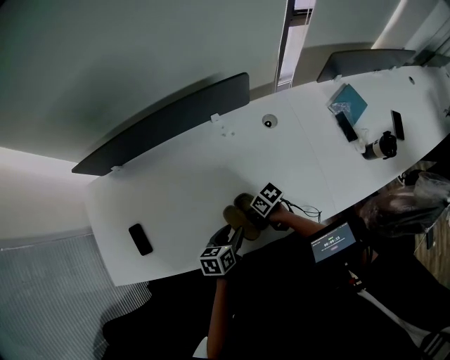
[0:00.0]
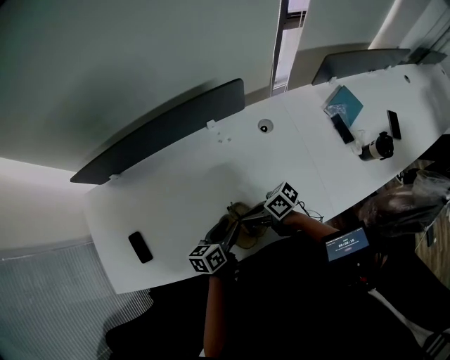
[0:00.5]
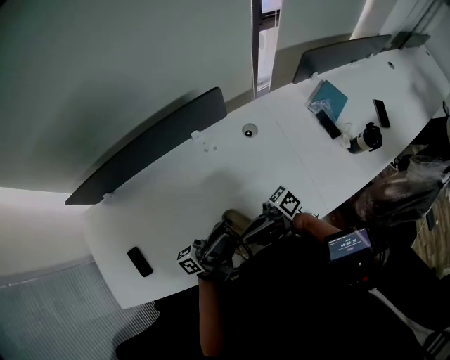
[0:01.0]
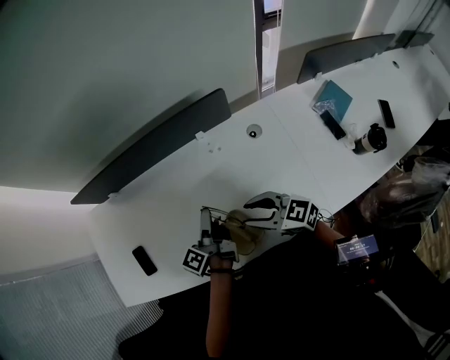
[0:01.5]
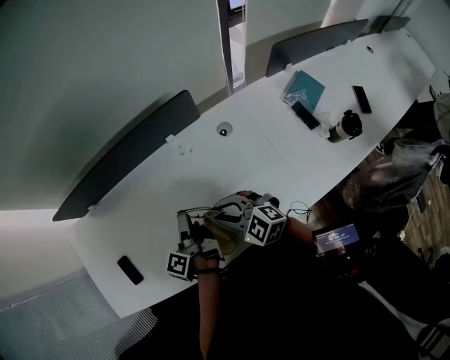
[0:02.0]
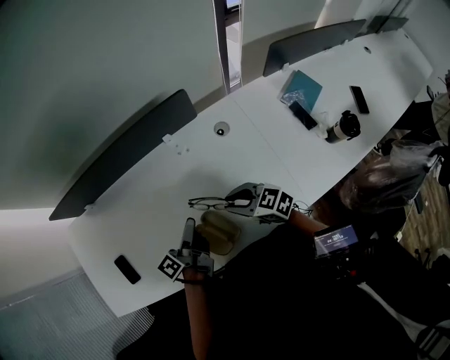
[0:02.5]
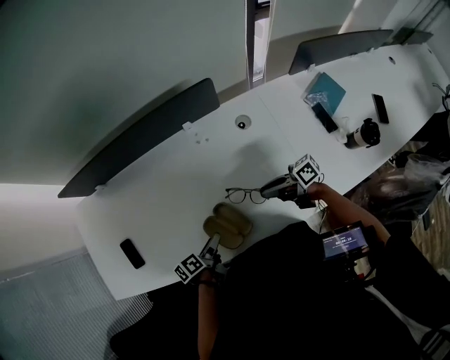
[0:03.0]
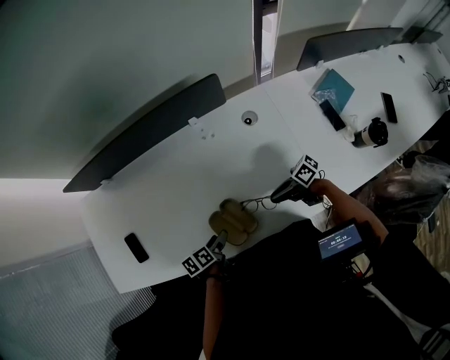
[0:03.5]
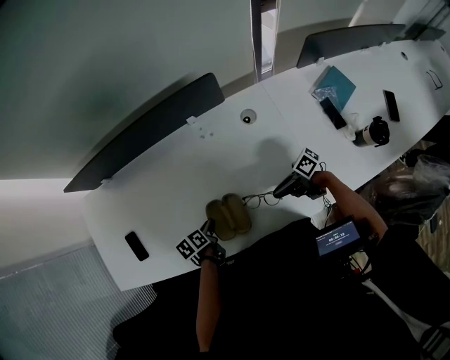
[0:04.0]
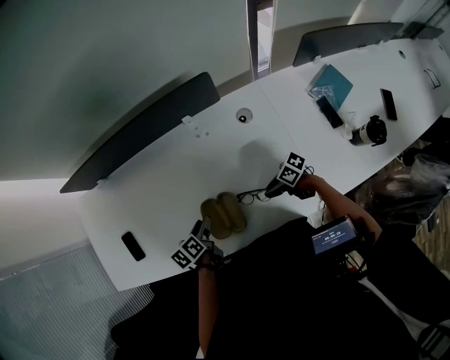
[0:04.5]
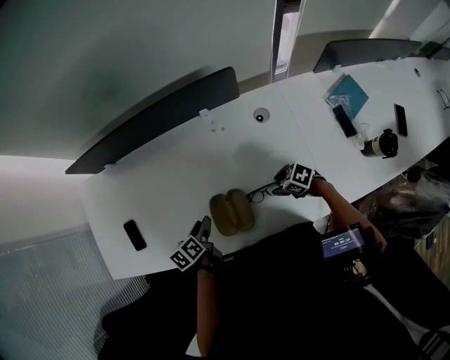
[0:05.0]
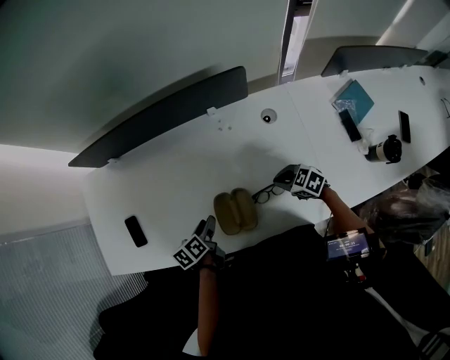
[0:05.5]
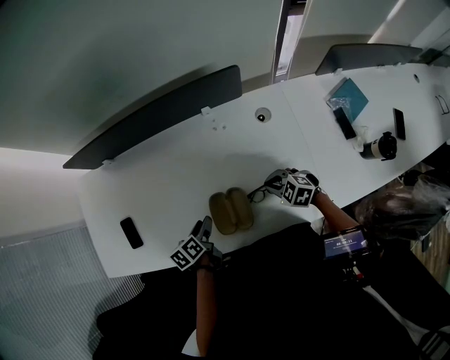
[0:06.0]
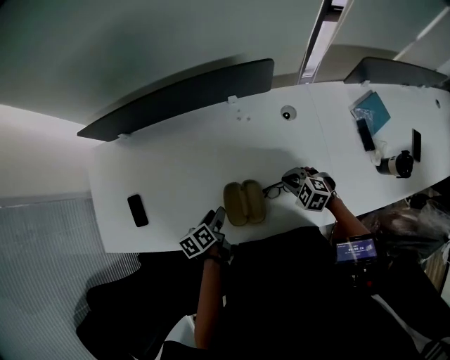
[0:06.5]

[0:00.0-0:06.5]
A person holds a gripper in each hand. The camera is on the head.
0:00.0 to 0:02.0: The right gripper heads upward, covering approximately 20 cm, rotates around the line of its fingers by about 60 degrees, counterclockwise from behind, and opens; the left gripper changes place by roughly 15 cm, and points its fingers some 30 degrees further upward.
0:02.0 to 0:04.5: The left gripper heads downward, covering some 10 cm, angles its fingers downward, by roughly 30 degrees, and closes and opens again. The right gripper travels downward by about 20 cm, and rotates around the line of its fingers by about 60 degrees, clockwise from behind.
0:04.5 to 0:06.5: The right gripper travels upward by some 5 cm, rotates around the line of its fingers by approximately 50 degrees, counterclockwise from behind, and closes.

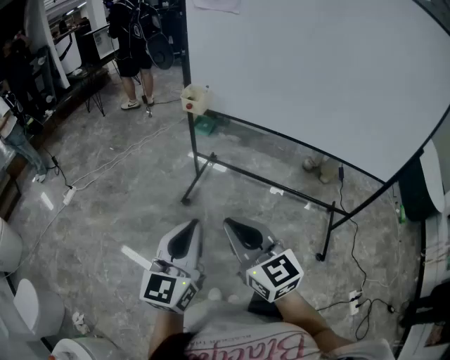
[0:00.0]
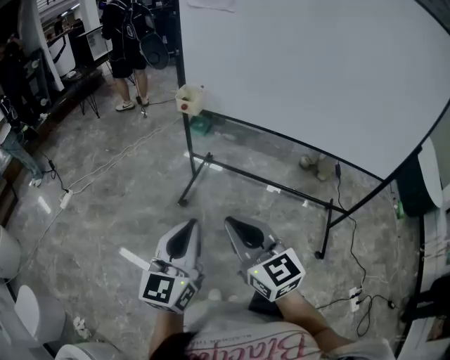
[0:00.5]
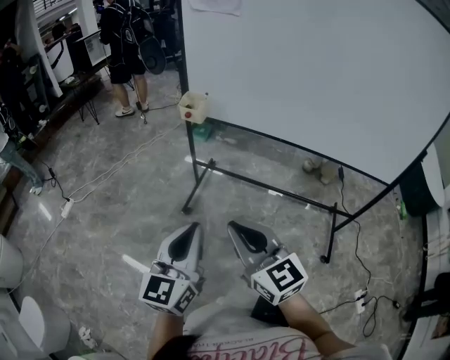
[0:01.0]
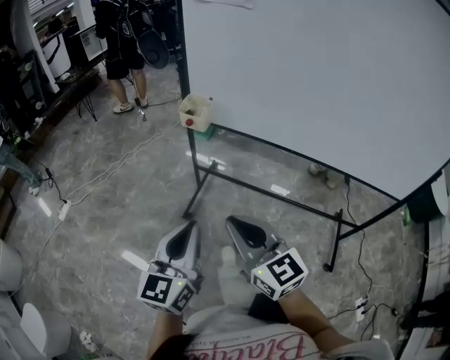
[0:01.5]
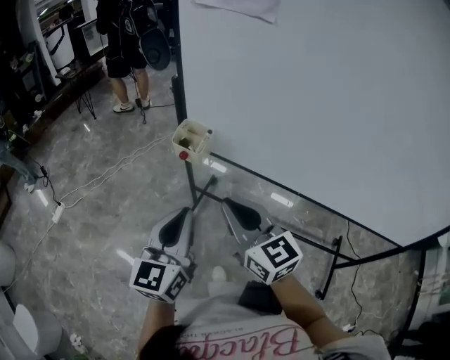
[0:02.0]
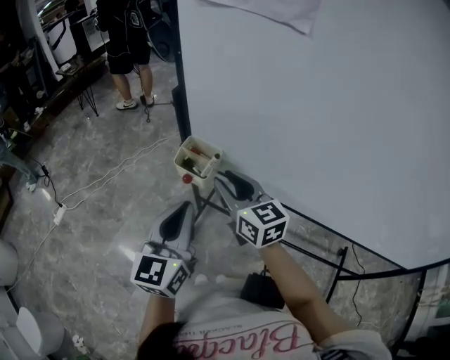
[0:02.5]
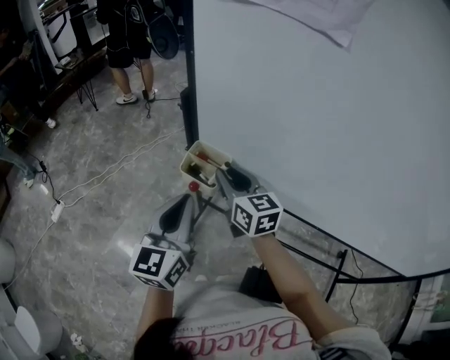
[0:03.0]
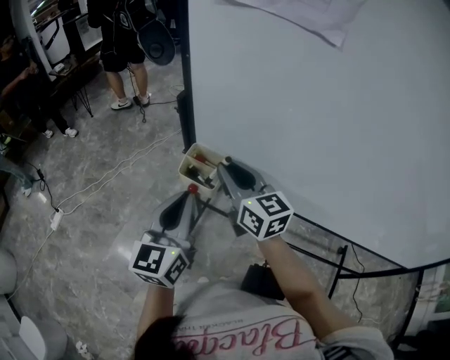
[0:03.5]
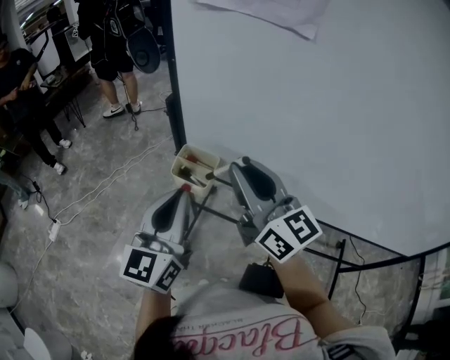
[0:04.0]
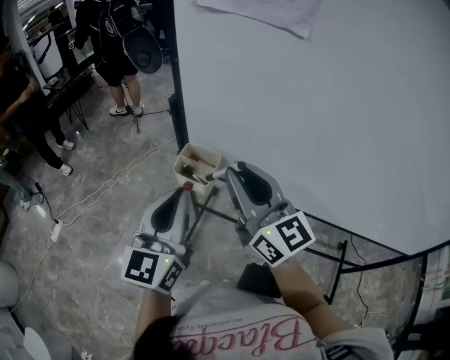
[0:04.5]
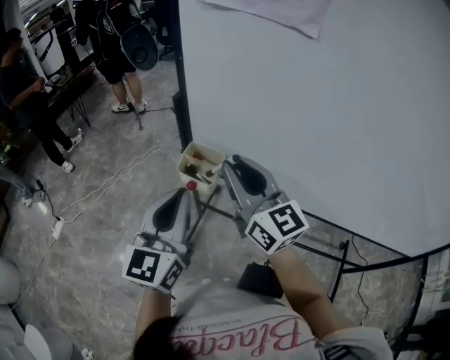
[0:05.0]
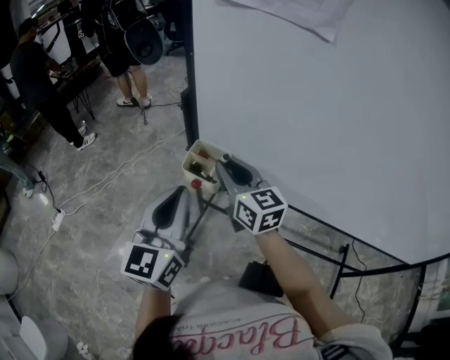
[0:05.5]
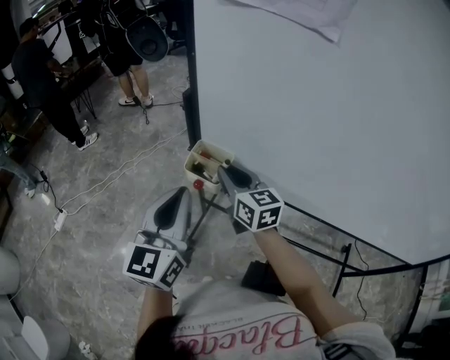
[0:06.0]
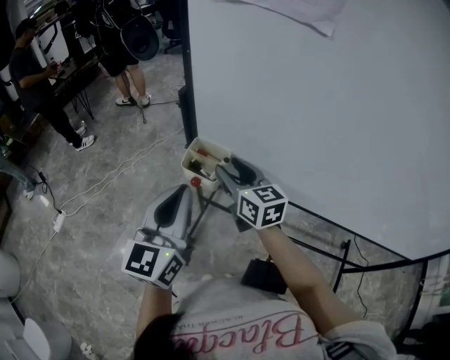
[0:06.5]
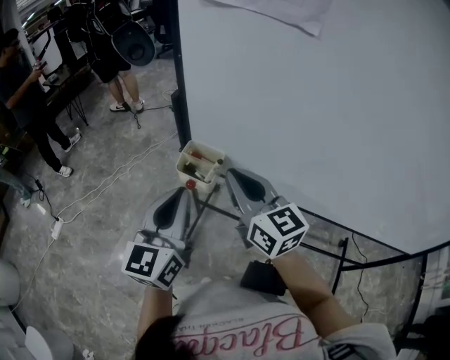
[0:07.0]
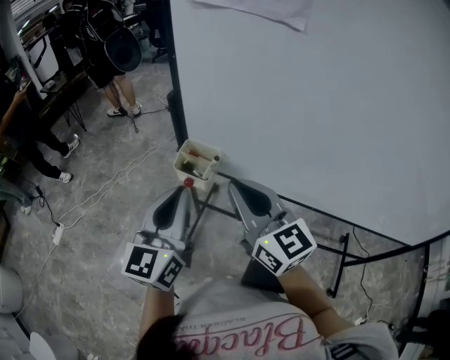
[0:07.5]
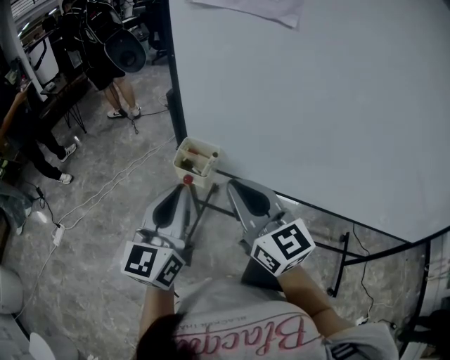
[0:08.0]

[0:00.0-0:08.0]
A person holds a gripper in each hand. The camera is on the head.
0:00.0 to 0:02.0: The grippers both shift forward by roughly 30 cm.
0:02.0 to 0:04.0: The left gripper travels forward by some 15 cm. The right gripper is displaced forward and upward by roughly 15 cm.
0:04.0 to 0:06.0: The right gripper shifts some 15 cm downward and forward, and rotates about 20 degrees.
0:06.0 to 0:08.0: The right gripper is displaced backward and upward by approximately 20 cm, and opens, then closes again.

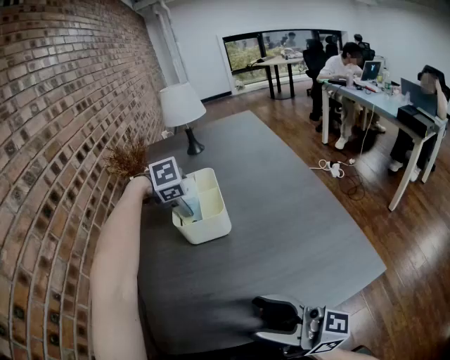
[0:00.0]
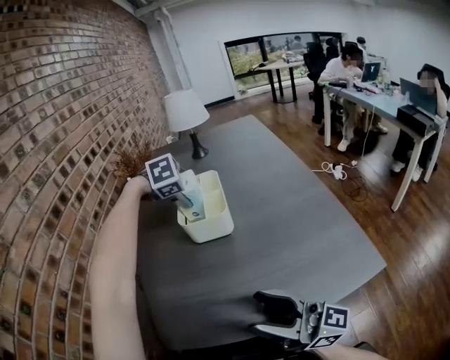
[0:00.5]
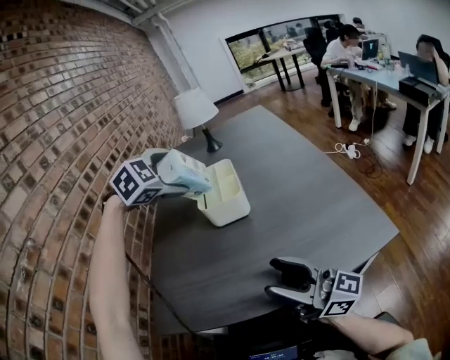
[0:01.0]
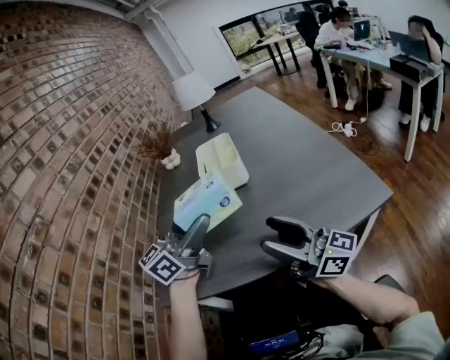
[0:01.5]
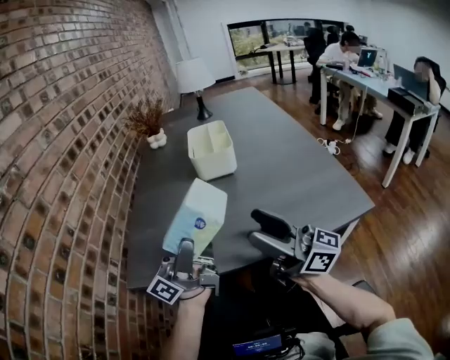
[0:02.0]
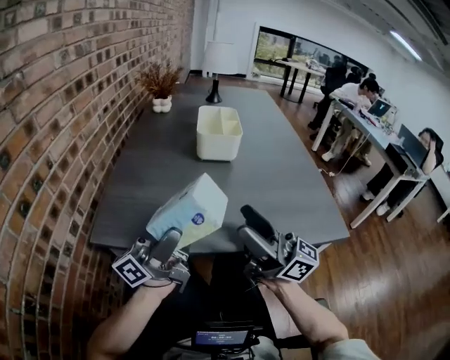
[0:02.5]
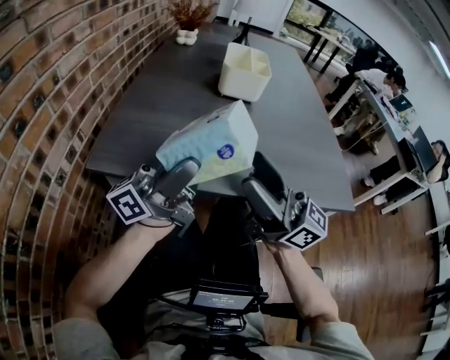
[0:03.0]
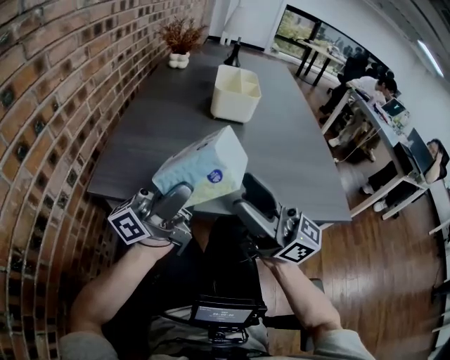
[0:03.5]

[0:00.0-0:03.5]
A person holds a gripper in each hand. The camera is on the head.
0:00.0 to 0:02.0: The left gripper ends up about 40 cm from where it was, and tilts its fingers roughly 120 degrees upward.
0:02.0 to 0:03.5: The right gripper is displaced to the left by roughly 5 cm.

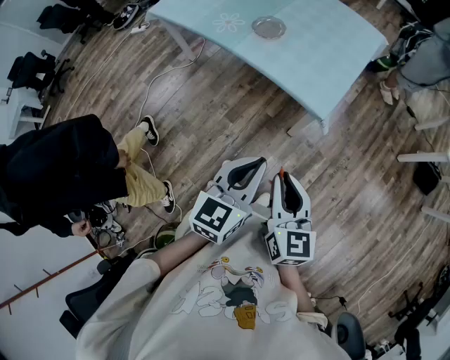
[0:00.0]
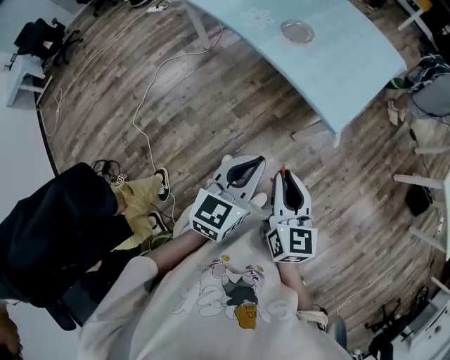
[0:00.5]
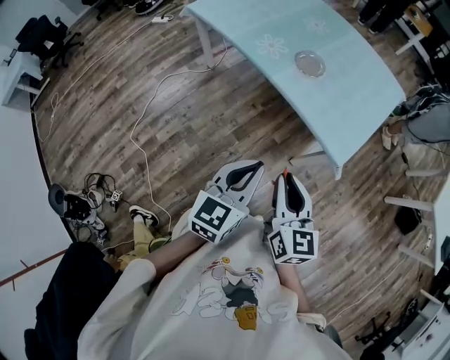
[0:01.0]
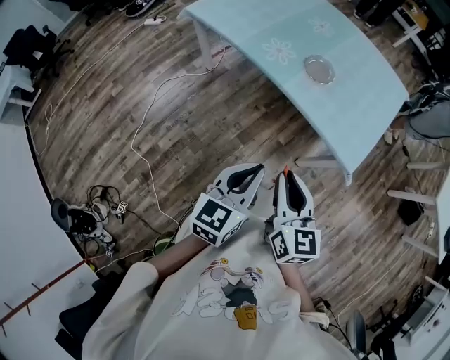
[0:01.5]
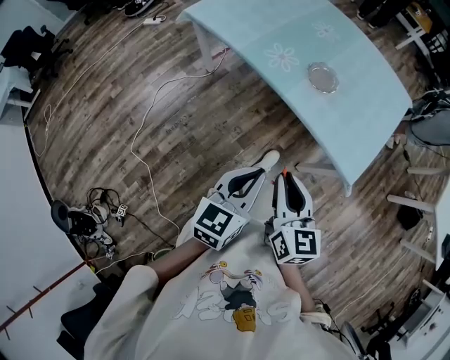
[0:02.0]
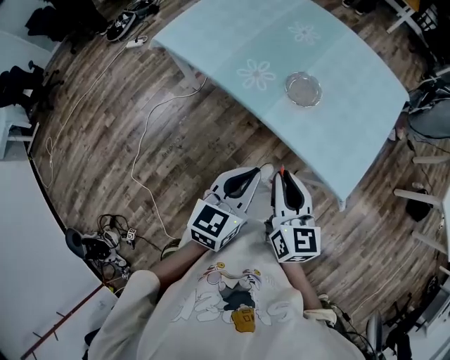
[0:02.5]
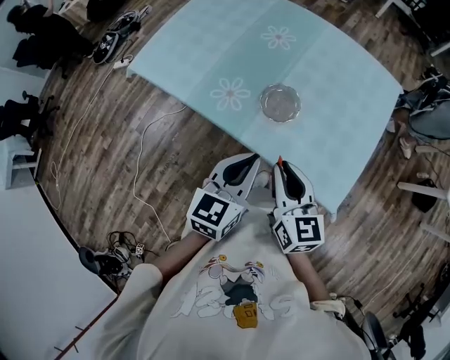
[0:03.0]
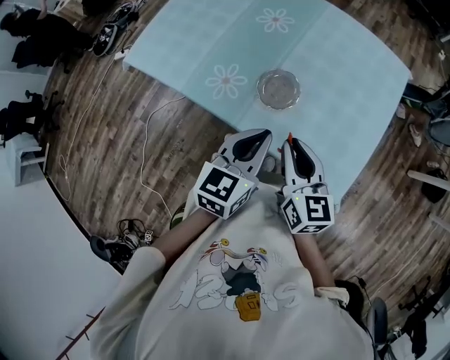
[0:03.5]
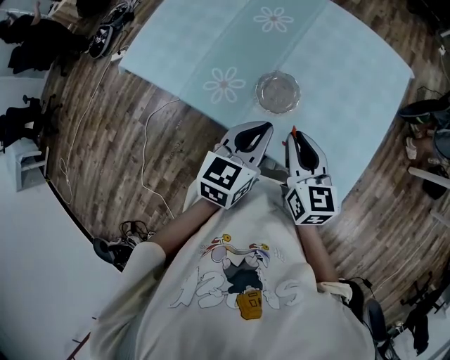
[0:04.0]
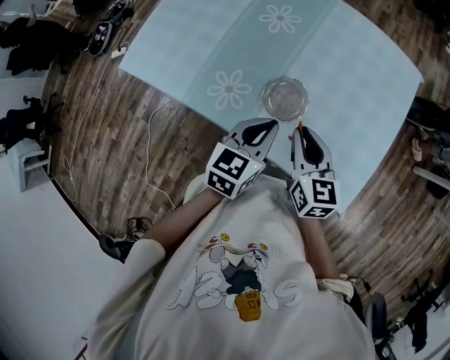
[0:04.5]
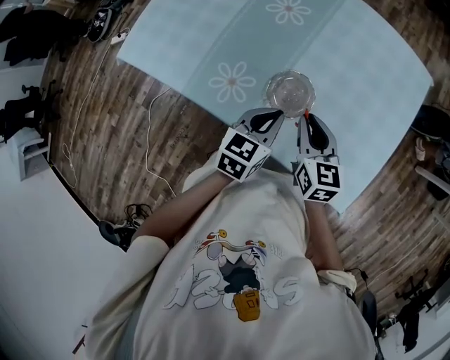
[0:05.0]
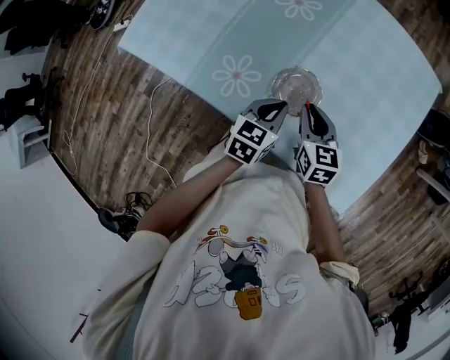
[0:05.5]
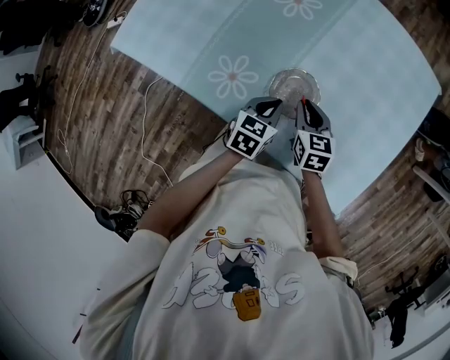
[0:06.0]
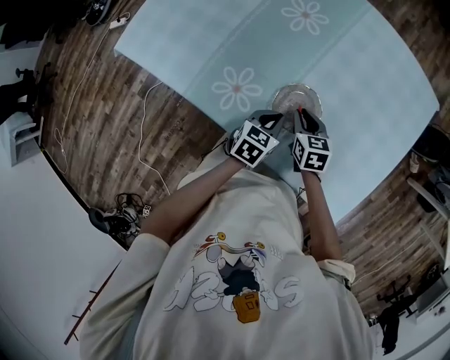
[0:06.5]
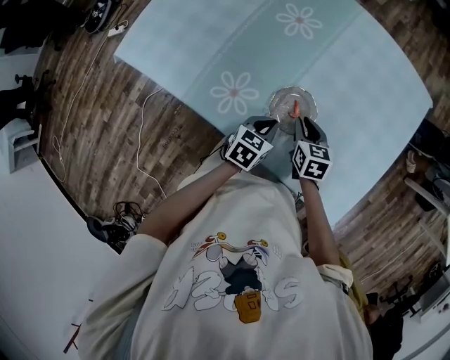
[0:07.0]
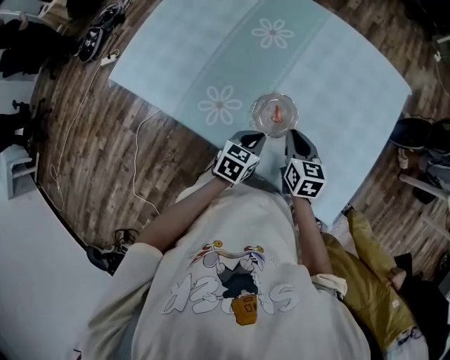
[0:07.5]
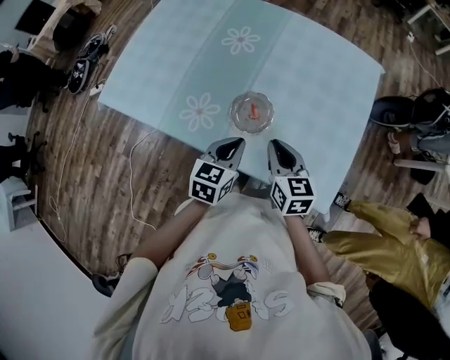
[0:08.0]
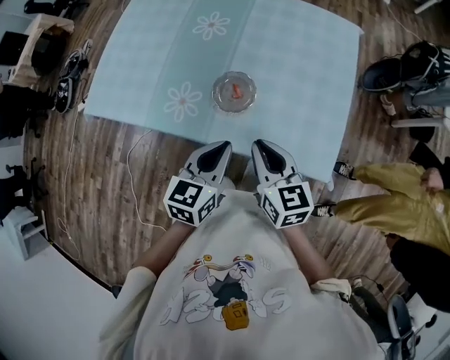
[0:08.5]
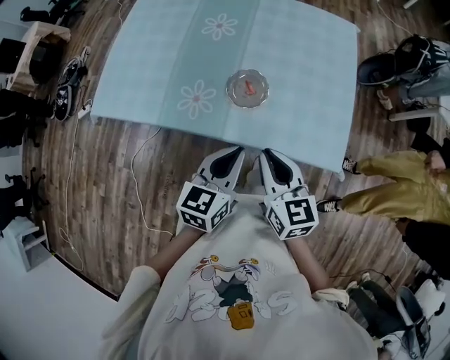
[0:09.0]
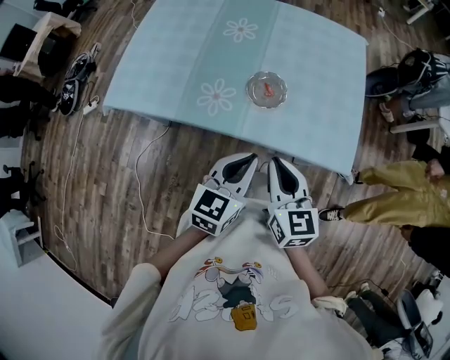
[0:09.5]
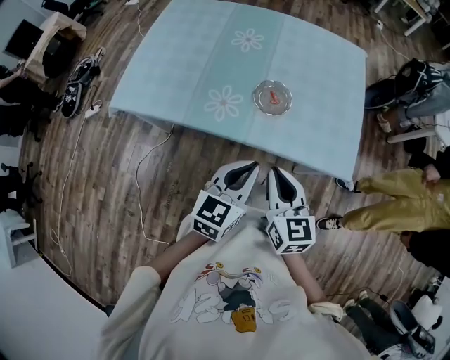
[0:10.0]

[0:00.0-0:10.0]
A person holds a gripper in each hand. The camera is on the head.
0:00.0 to 0:02.0: The two grippers go some 30 cm to the left and forward.
0:02.0 to 0:04.0: The two grippers go approximately 35 cm forward.
0:04.0 to 0:06.0: The two grippers go approximately 25 cm downward and forward.
0:06.0 to 0:08.0: The grippers both shift upward and backward by about 15 cm.
0:08.0 to 0:10.0: The right gripper heads backward, to the left and upward, covering some 25 cm. The left gripper goes approximately 20 cm backward, upward and to the left.
